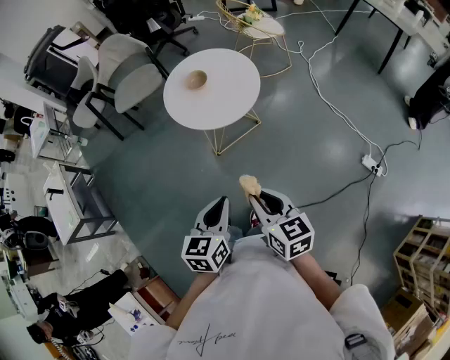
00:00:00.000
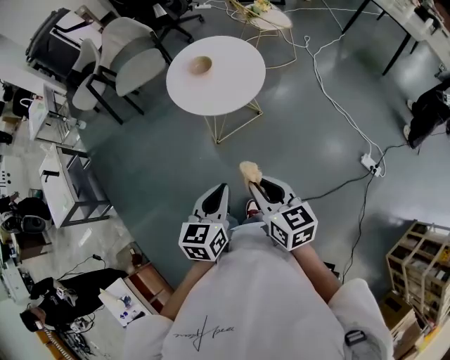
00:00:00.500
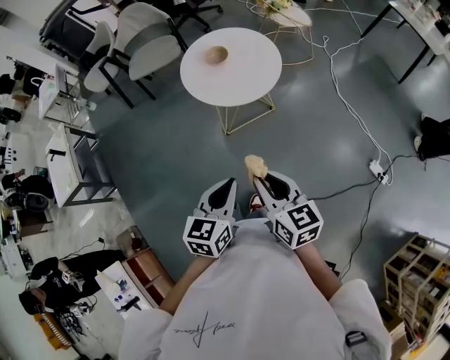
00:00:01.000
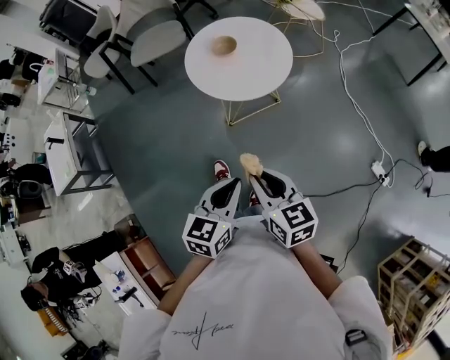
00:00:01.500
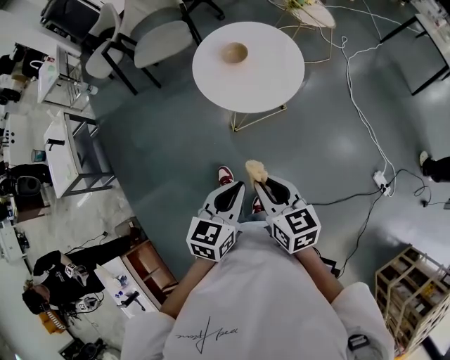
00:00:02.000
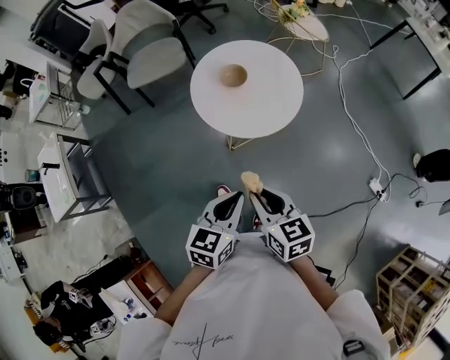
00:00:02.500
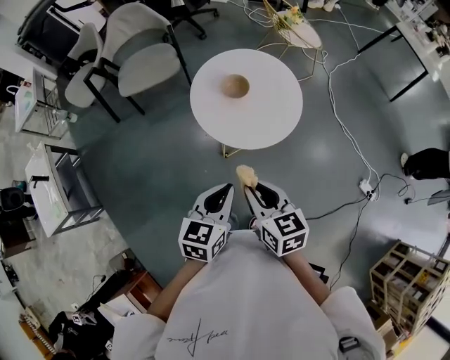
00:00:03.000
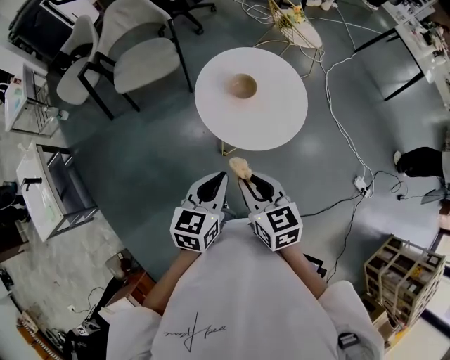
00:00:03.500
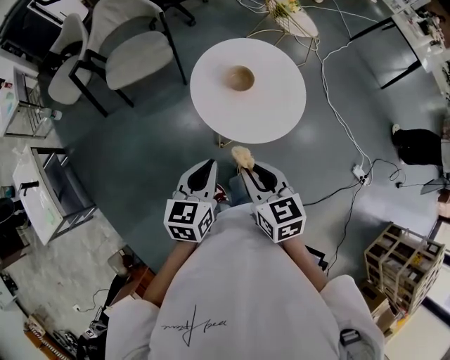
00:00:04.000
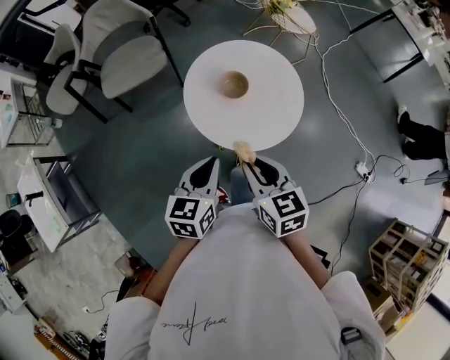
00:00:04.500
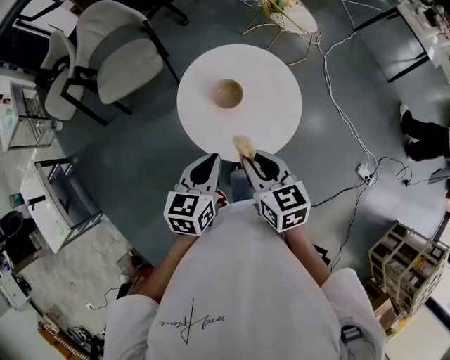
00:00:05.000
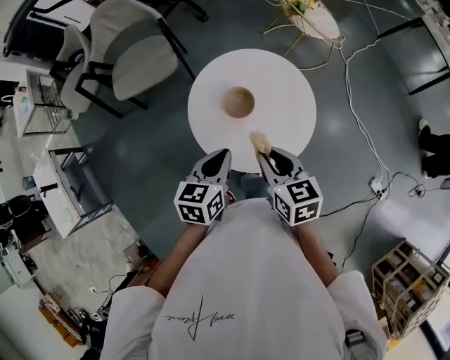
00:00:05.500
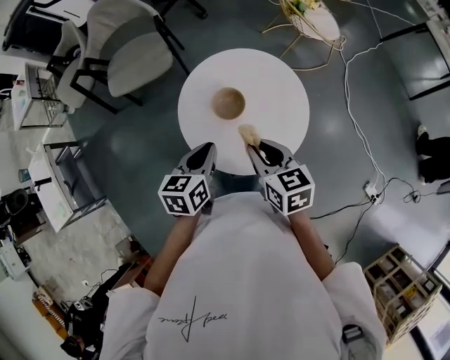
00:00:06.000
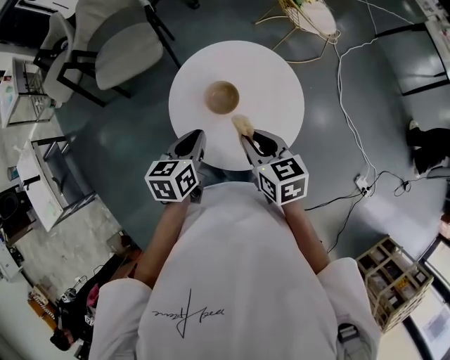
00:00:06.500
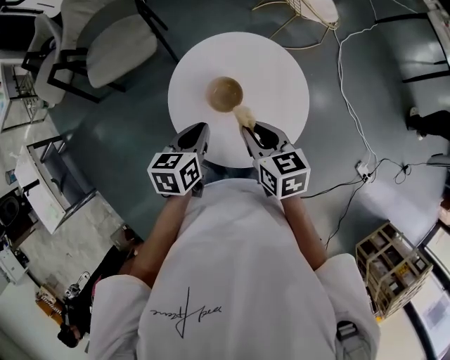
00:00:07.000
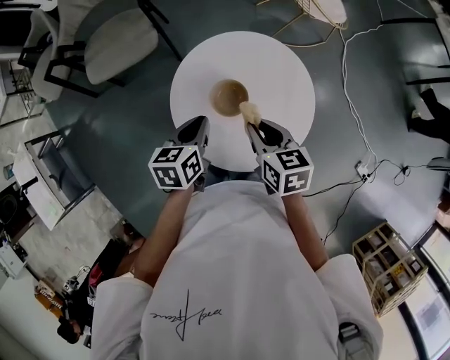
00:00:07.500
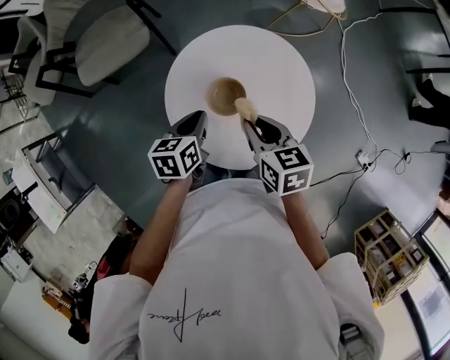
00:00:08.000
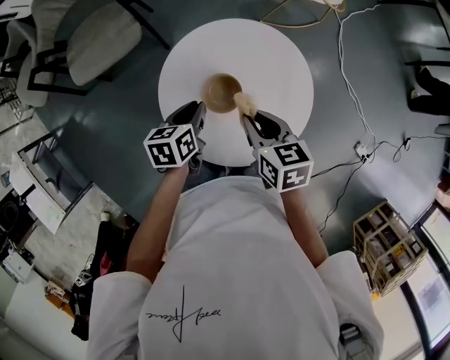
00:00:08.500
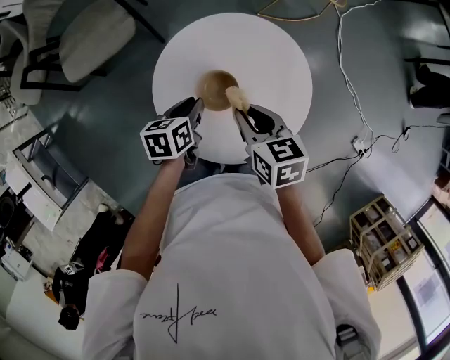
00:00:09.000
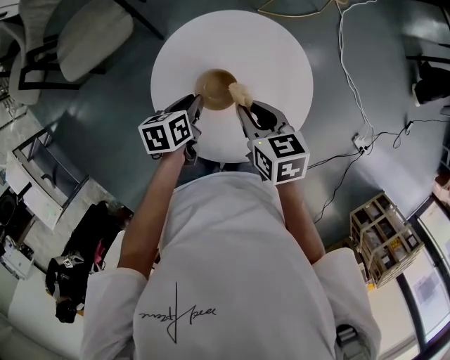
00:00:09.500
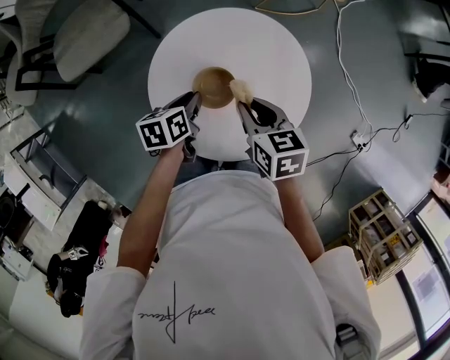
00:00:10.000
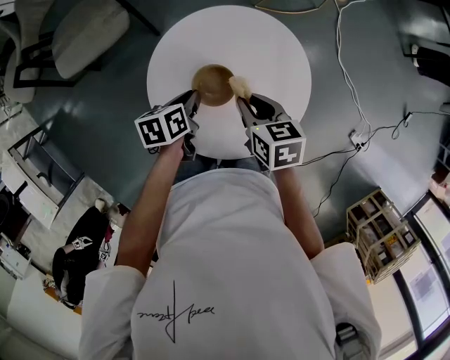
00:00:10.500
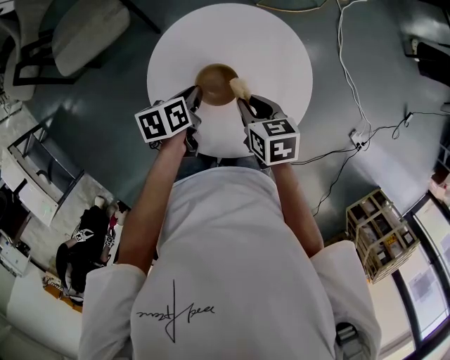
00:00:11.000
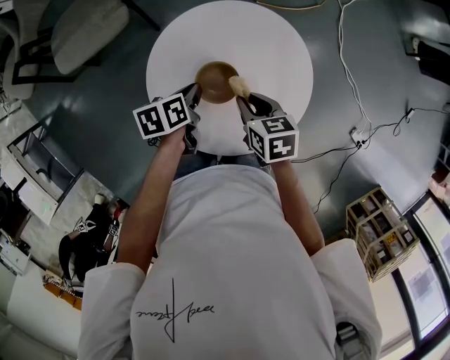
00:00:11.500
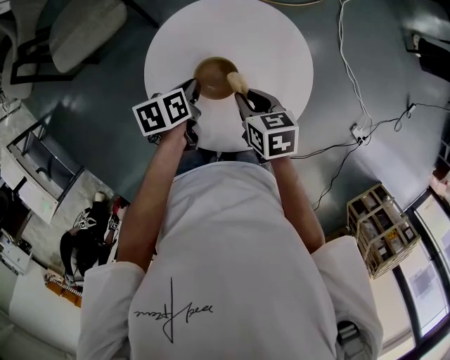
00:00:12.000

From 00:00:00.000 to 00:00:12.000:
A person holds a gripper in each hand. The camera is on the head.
From 00:00:00.000 to 00:00:02.000: The grippers both shift forward by roughly 5 cm.
From 00:00:02.000 to 00:00:04.000: The two grippers go about 25 cm forward and to the left.
From 00:00:04.000 to 00:00:06.000: Both grippers travel together forward and to the right, about 20 cm.
From 00:00:06.000 to 00:00:08.000: Both grippers travel together forward and downward, about 10 cm.
From 00:00:08.000 to 00:00:10.000: The left gripper moves downward, roughly 5 cm.
From 00:00:10.000 to 00:00:12.000: The right gripper travels downward by roughly 5 cm.

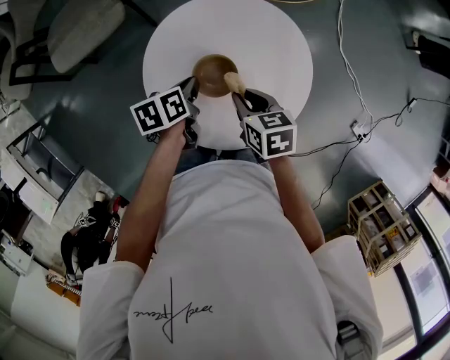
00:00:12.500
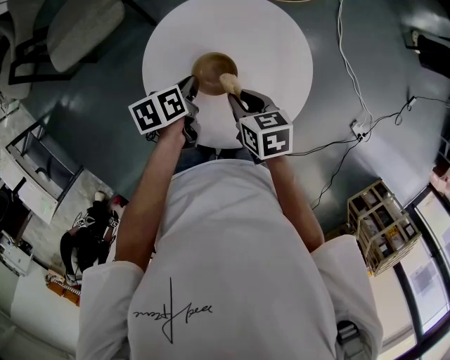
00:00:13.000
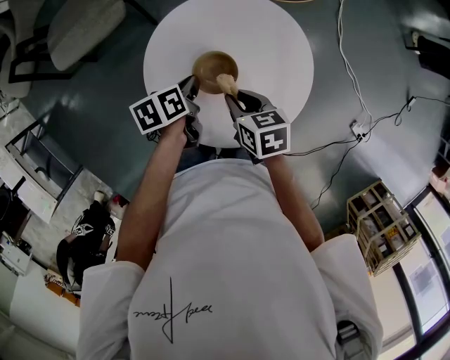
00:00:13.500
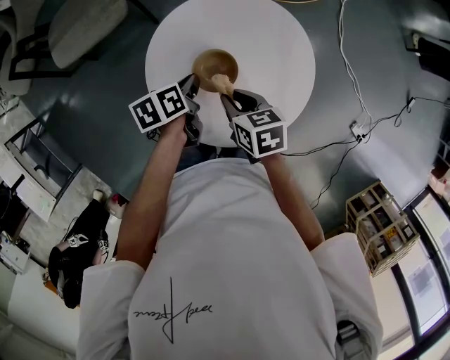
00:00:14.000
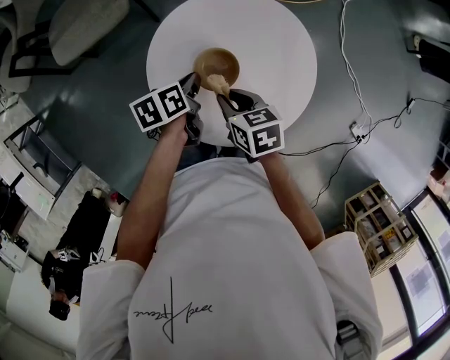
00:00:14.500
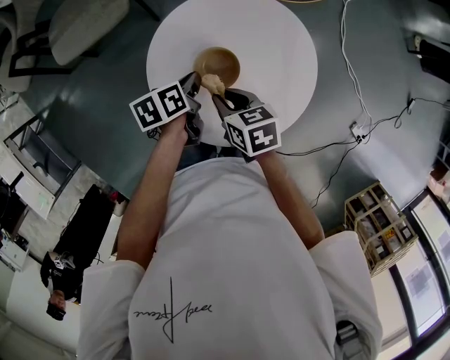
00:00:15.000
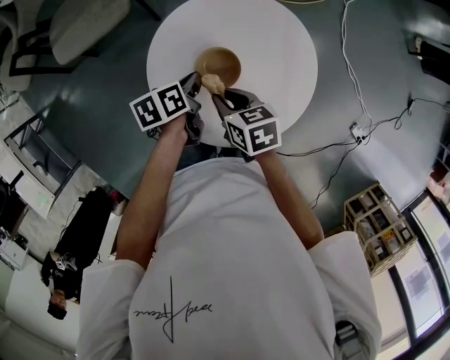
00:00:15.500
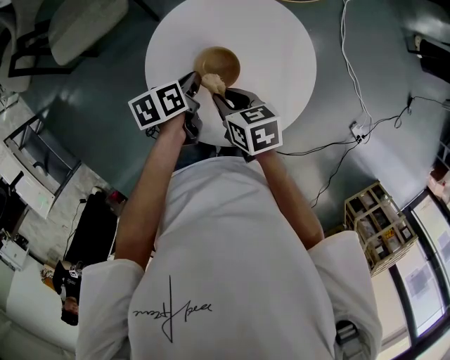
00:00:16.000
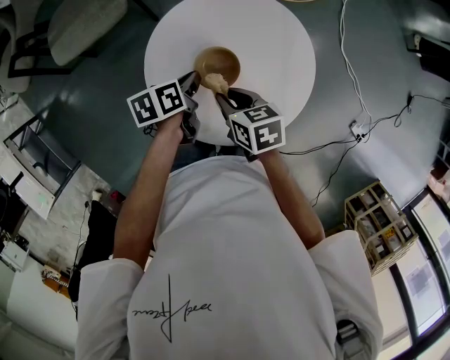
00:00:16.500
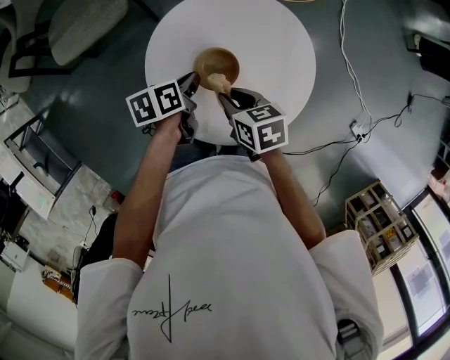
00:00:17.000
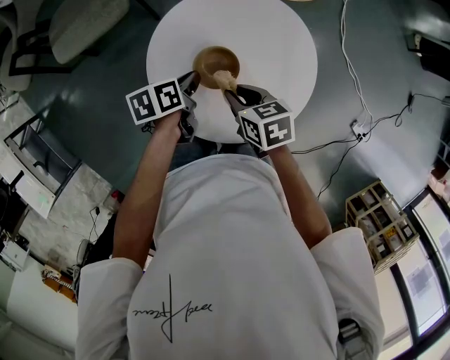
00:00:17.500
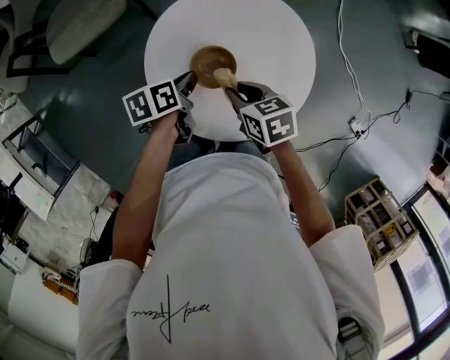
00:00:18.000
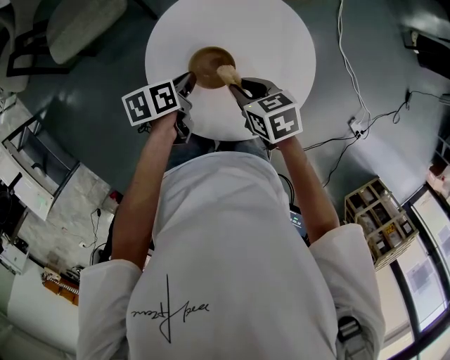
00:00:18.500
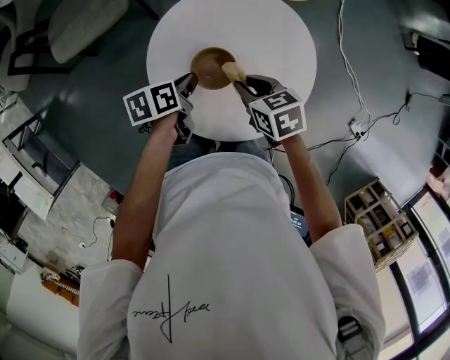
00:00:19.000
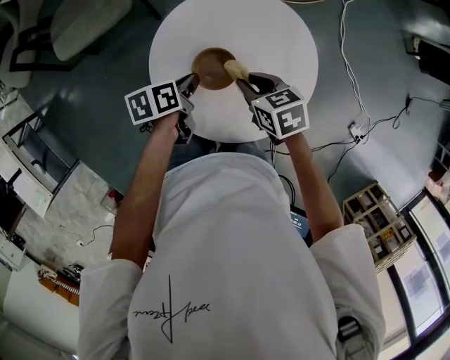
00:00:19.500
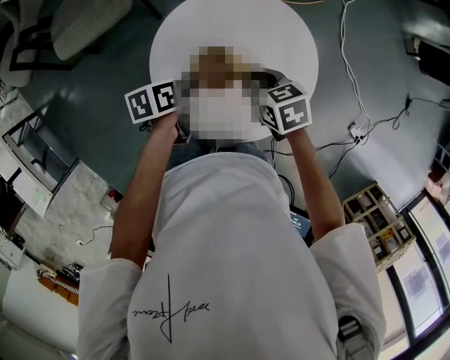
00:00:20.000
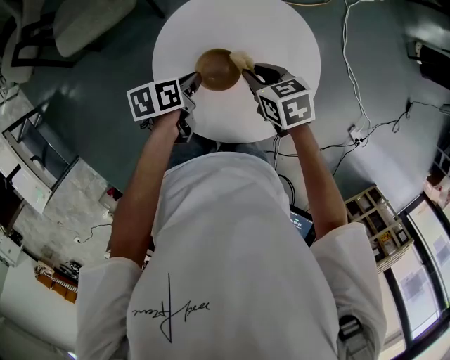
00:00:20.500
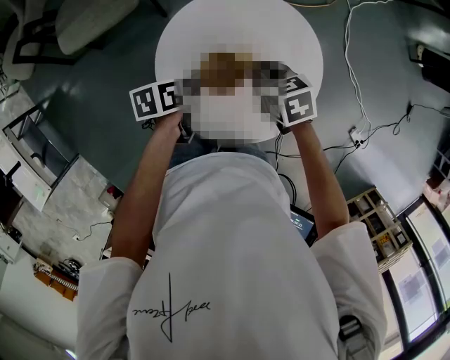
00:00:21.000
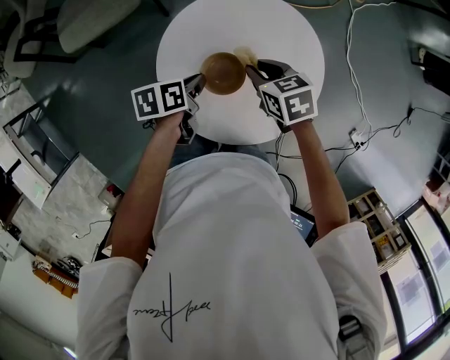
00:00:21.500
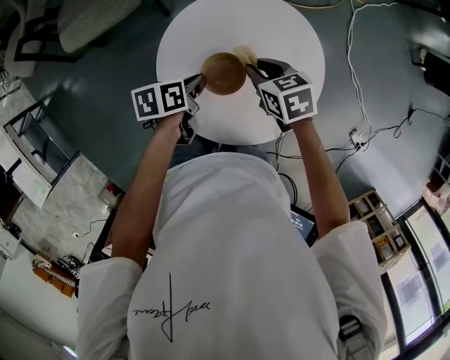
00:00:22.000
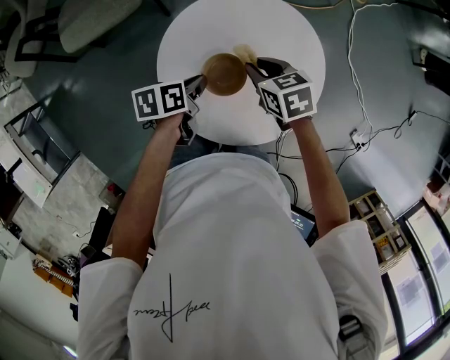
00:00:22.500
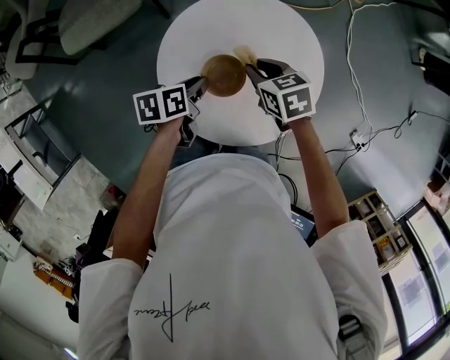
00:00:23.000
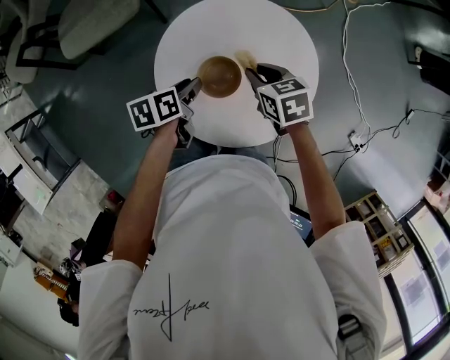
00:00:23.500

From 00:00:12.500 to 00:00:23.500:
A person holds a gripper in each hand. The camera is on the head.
From 00:00:12.500 to 00:00:14.500: The right gripper changes place by some 5 cm.
From 00:00:14.500 to 00:00:20.000: The grippers move only a little.
From 00:00:20.000 to 00:00:21.500: The grippers make only small movements.
From 00:00:21.500 to 00:00:23.500: The left gripper opens.

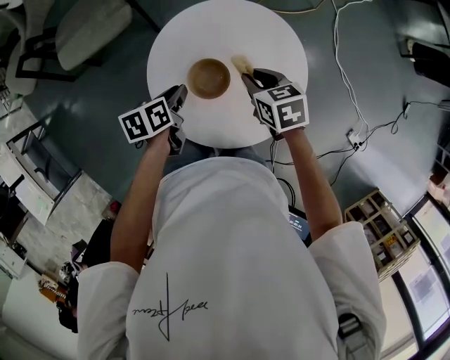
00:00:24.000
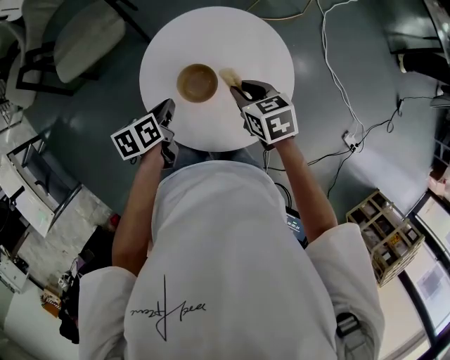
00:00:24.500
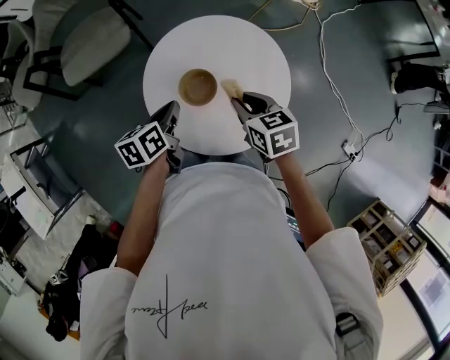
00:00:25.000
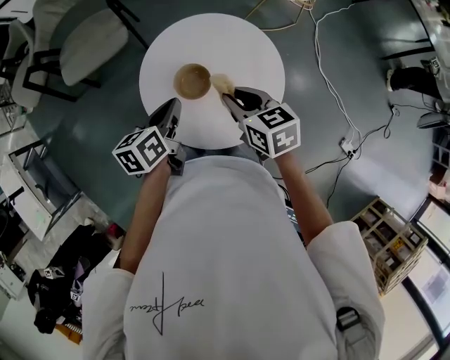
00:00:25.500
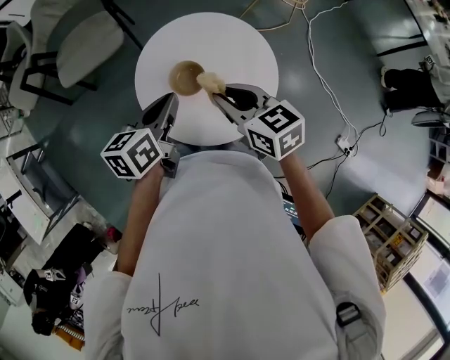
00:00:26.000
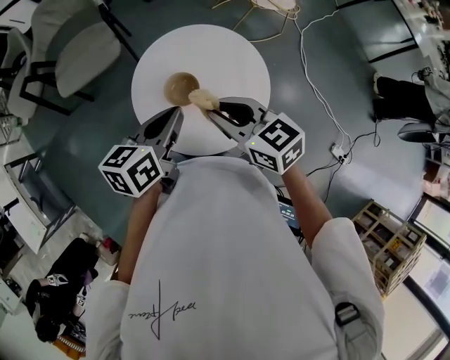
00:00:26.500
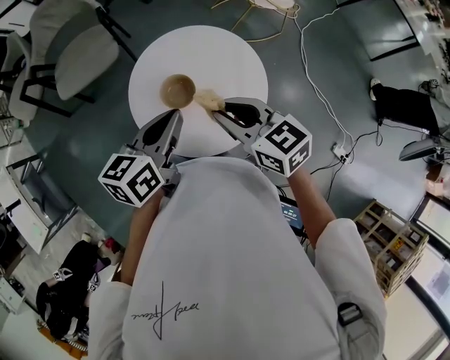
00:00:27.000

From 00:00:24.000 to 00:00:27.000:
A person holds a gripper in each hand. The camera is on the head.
From 00:00:24.000 to 00:00:25.500: The left gripper heads upward, covering approximately 10 cm. The right gripper travels upward and backward by about 10 cm.
From 00:00:25.500 to 00:00:27.000: The grippers both shift upward by about 10 cm.

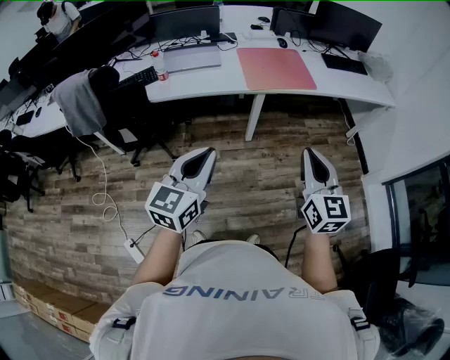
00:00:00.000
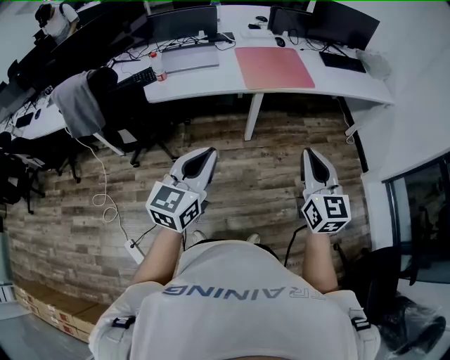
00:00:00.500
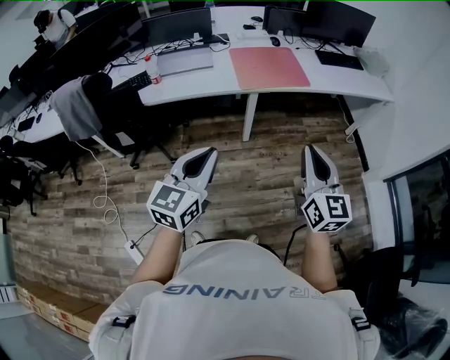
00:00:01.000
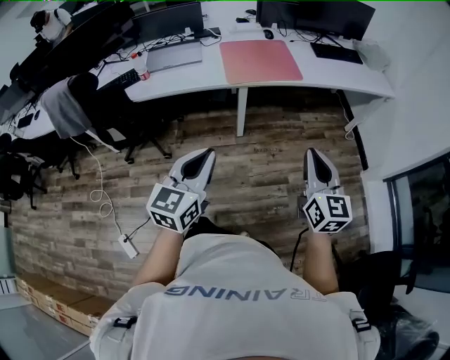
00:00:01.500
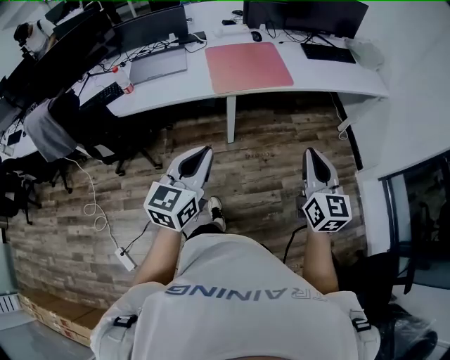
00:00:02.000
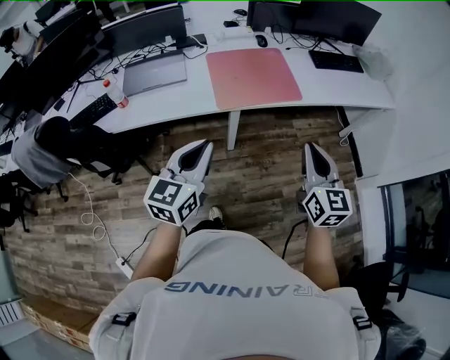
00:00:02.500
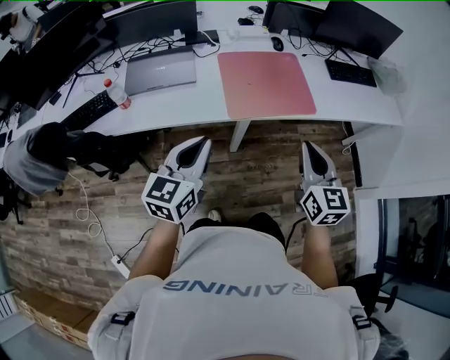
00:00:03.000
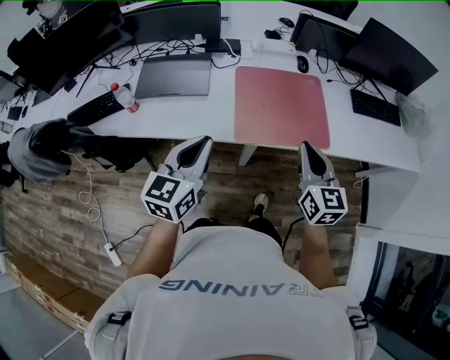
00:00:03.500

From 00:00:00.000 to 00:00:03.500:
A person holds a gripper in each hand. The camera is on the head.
From 00:00:00.000 to 00:00:02.000: The two grippers go some 20 cm to the right and forward.
From 00:00:02.000 to 00:00:03.500: The grippers both shift forward by about 35 cm.
